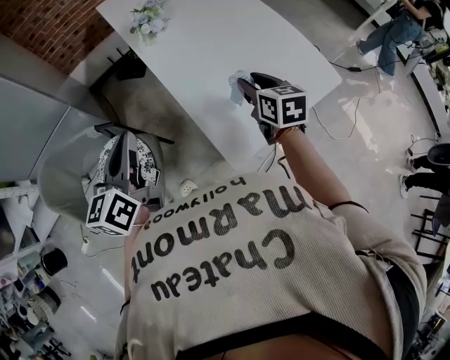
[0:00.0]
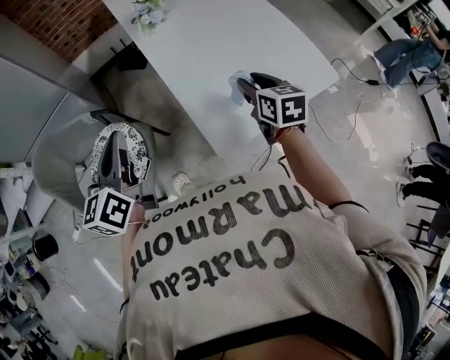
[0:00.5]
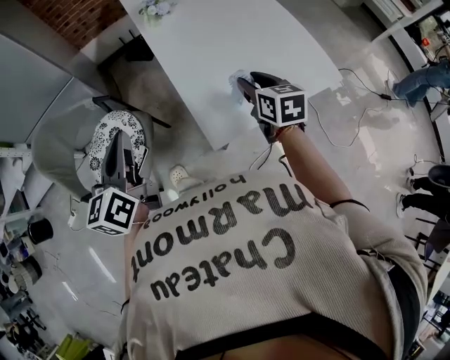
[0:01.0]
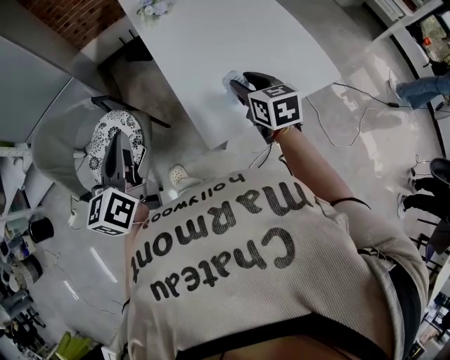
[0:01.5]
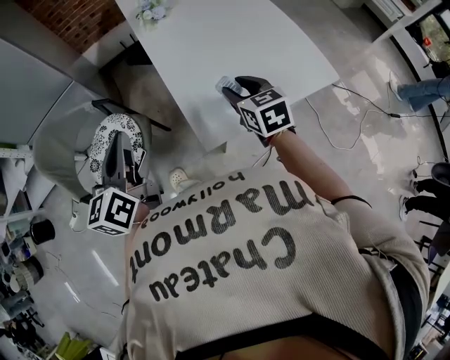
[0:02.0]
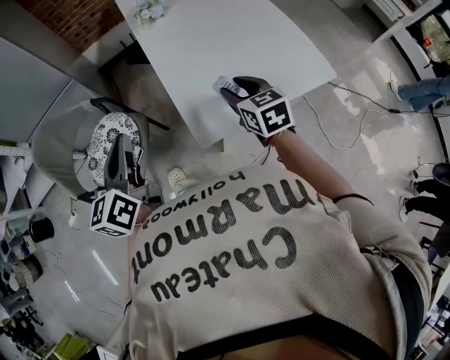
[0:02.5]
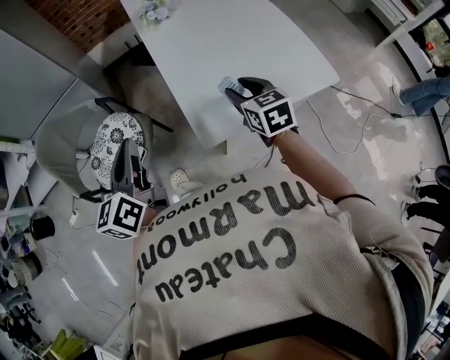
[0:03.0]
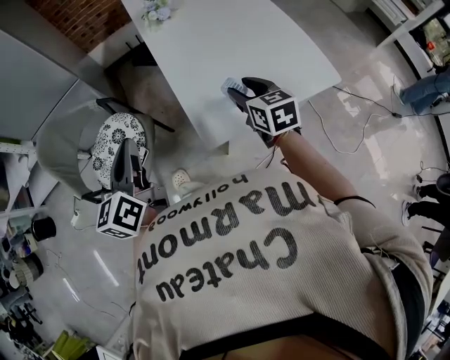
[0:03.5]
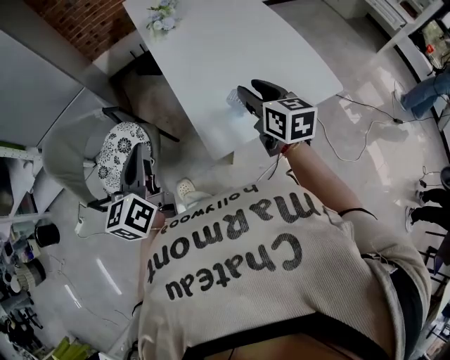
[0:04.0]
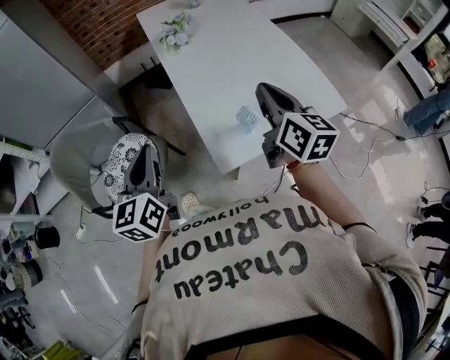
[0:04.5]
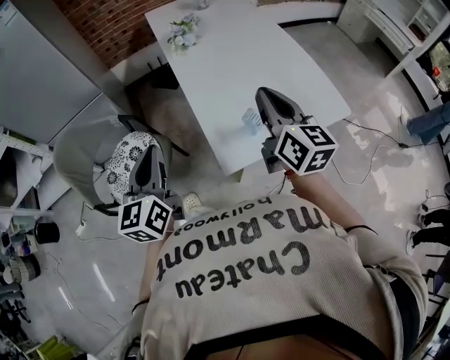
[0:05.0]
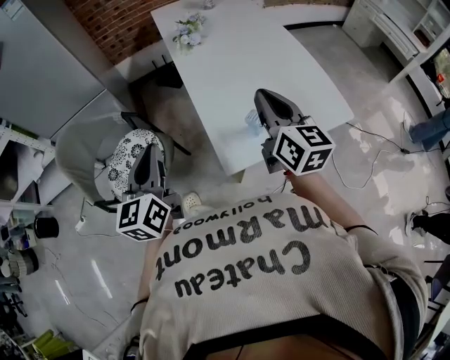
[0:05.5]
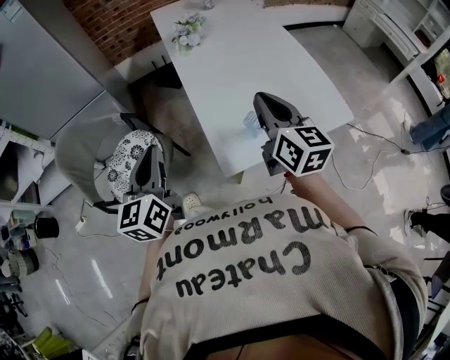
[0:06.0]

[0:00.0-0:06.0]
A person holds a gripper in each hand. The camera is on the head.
0:00.0 to 0:02.0: Both grippers travel together backward, about 10 cm.
0:02.0 to 0:04.0: The right gripper travels upward by roughly 5 cm.
0:04.0 to 0:06.0: The right gripper goes some 10 cm upward, and closes its fingers.

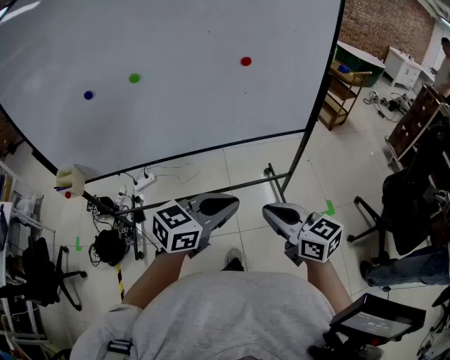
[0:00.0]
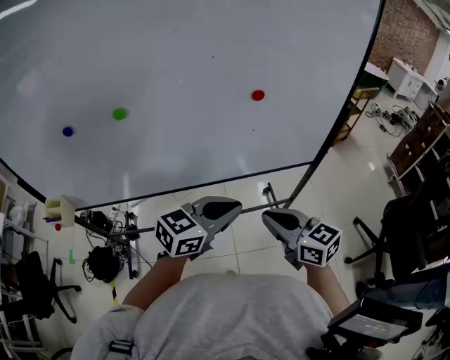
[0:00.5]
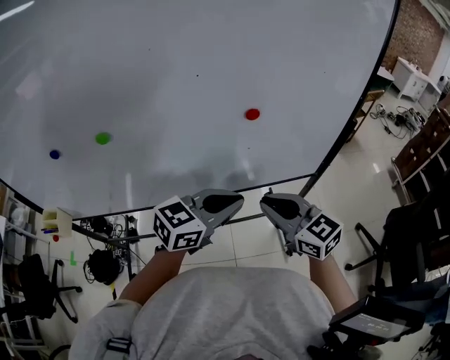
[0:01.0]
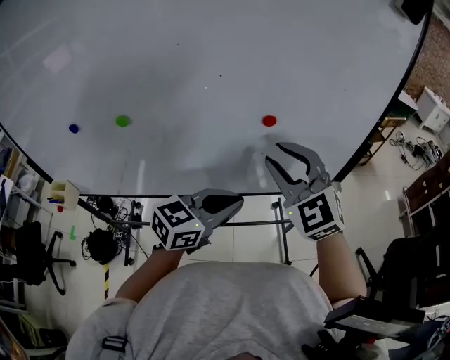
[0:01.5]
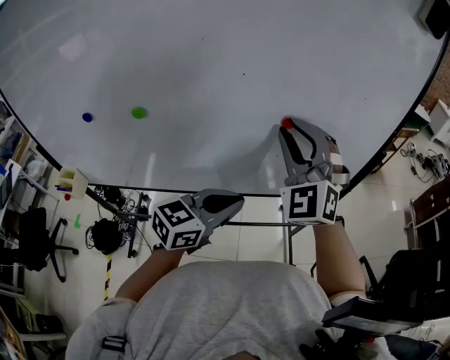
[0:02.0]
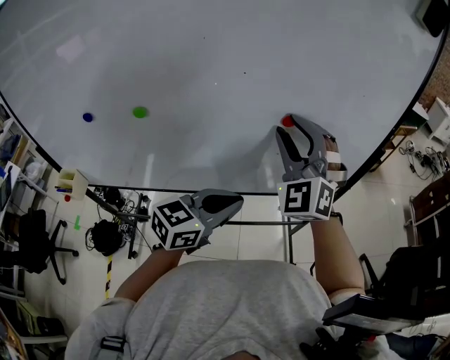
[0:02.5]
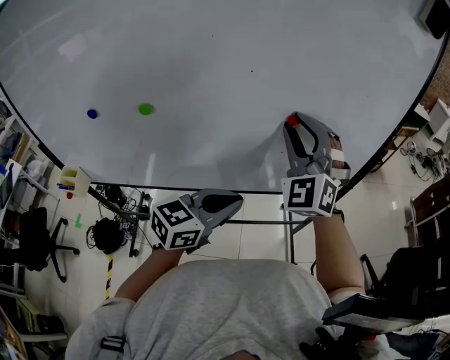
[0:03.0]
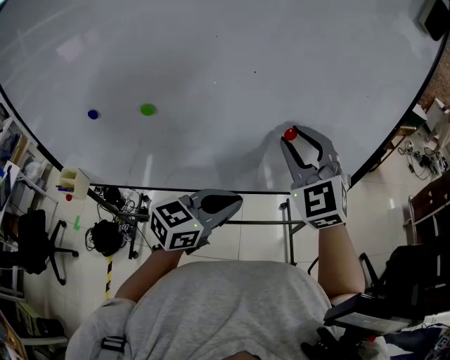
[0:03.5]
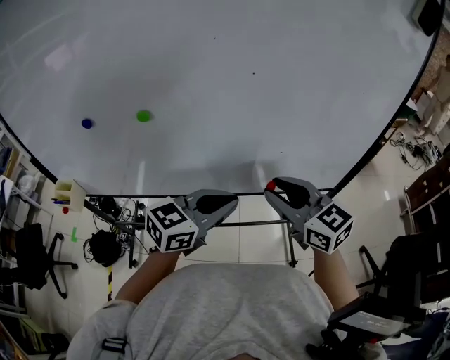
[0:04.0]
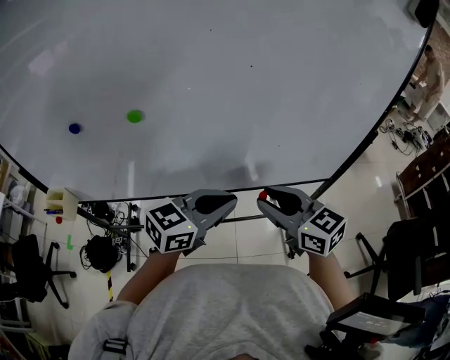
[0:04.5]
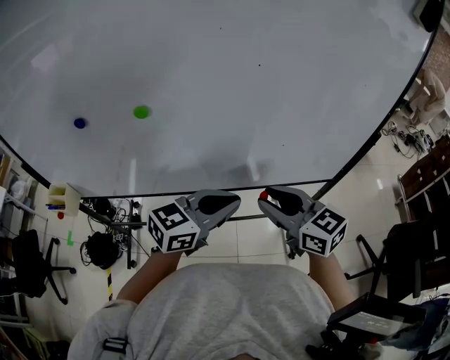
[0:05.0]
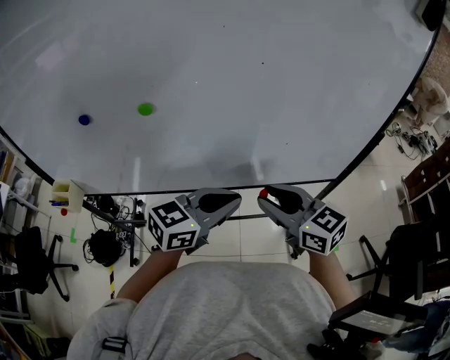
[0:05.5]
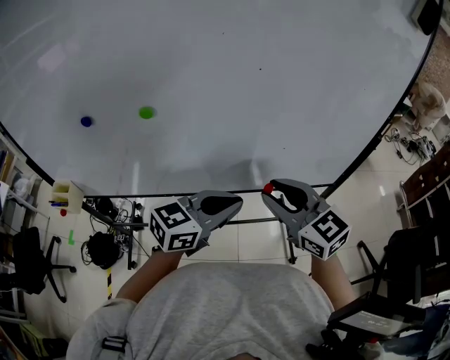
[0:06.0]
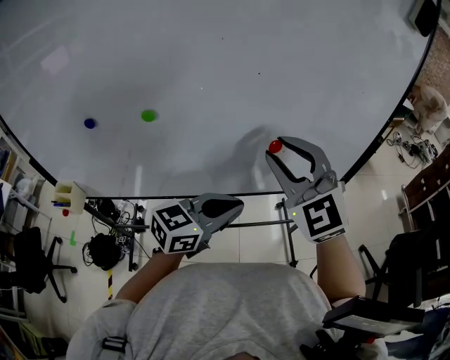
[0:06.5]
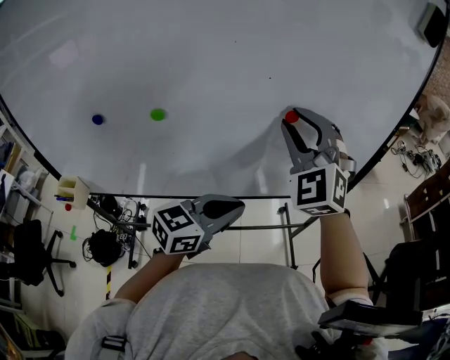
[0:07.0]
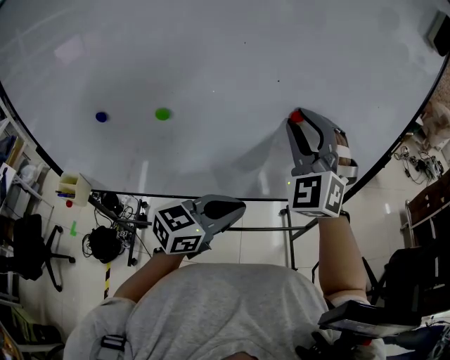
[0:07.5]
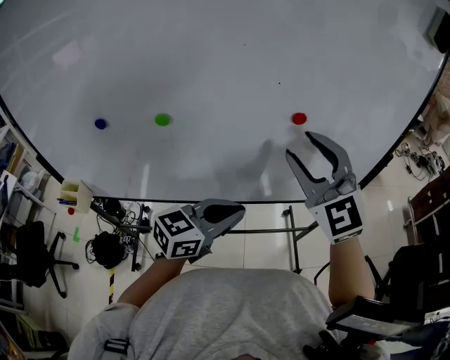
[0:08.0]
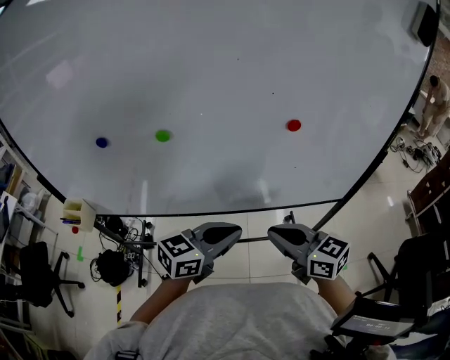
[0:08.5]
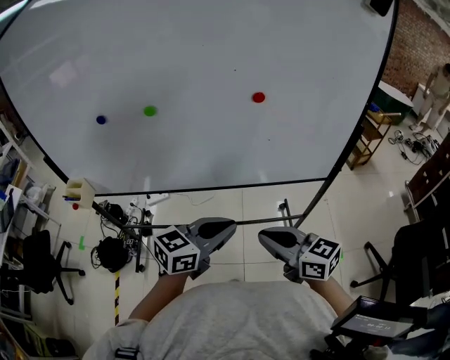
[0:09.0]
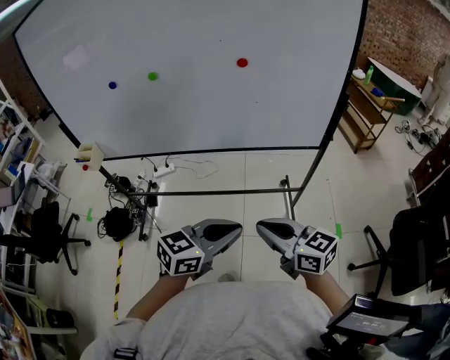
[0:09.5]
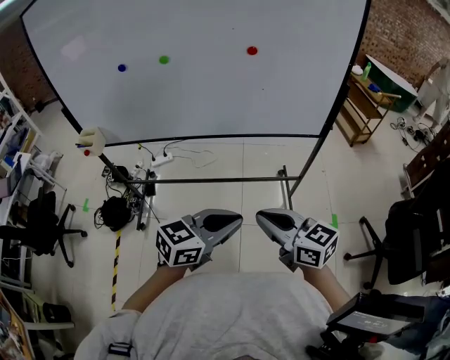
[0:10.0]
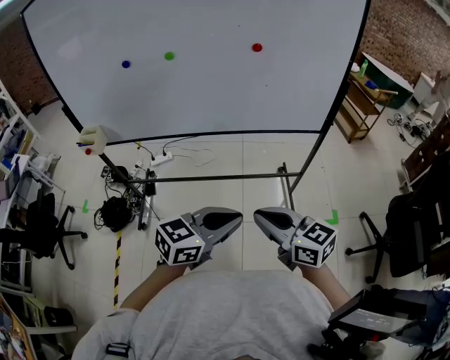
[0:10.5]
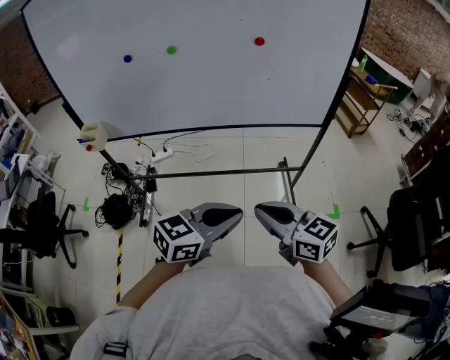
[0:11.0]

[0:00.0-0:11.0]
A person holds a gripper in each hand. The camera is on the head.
0:00.0 to 0:02.0: The left gripper is displaced forward by about 20 cm. Meanwhile the right gripper shifts about 40 cm forward and upward, and rolls counterclockwise, seen from behind, by roughly 70 degrees.
0:02.0 to 0:03.5: The grippers make only small movements.
0:03.5 to 0:05.5: The right gripper travels downward and backward by approximately 15 cm, and rolls clockwise, seen from behind, by some 50 degrees.
0:05.5 to 0:07.5: The right gripper shifts roughly 20 cm upward and forward, and rolls counterclockwise, seen from behind, by some 70 degrees.
0:07.5 to 0:09.0: The left gripper shifts roughly 10 cm backward, while the right gripper moves backward and downward, about 30 cm, twists roughly 80 degrees clockwise, seen from behind, and closes its fingers.
0:09.0 to 0:11.0: The grippers both shift backward by roughly 20 cm.

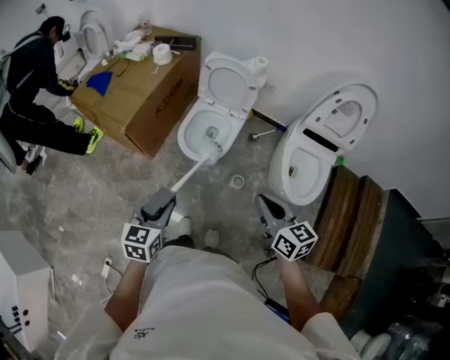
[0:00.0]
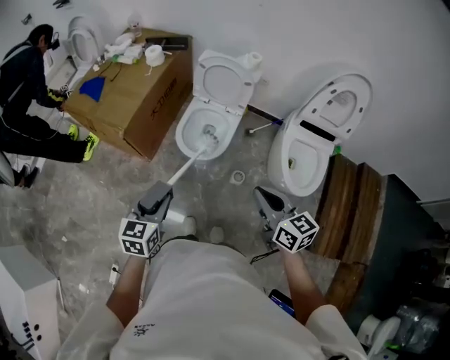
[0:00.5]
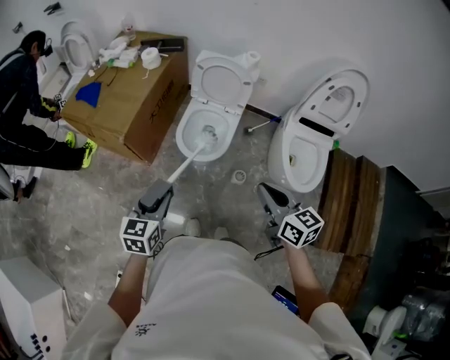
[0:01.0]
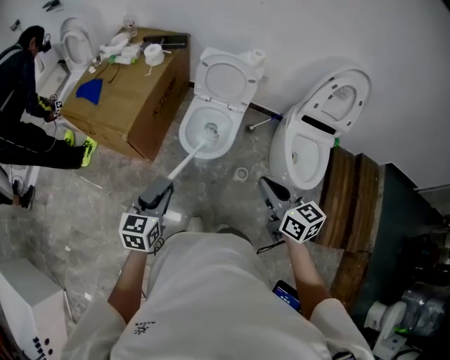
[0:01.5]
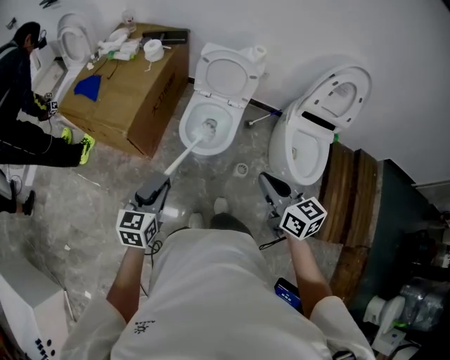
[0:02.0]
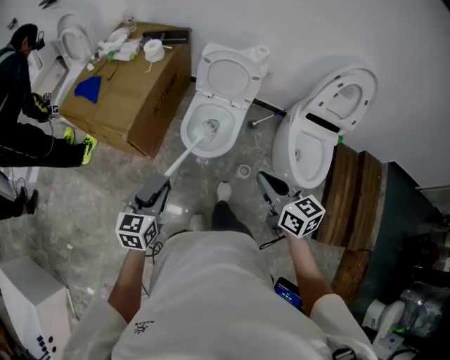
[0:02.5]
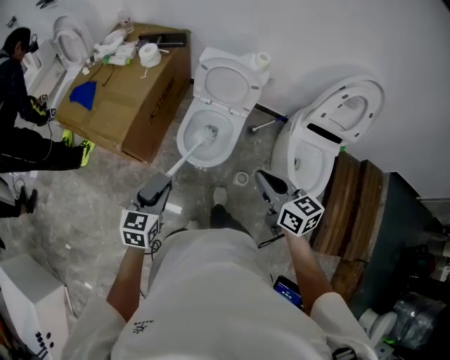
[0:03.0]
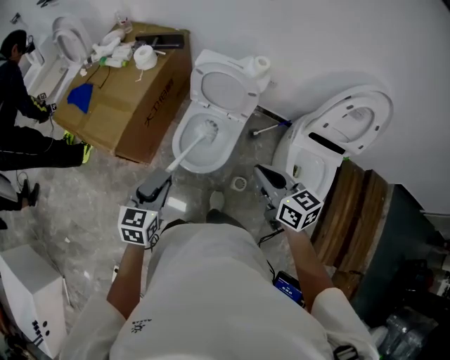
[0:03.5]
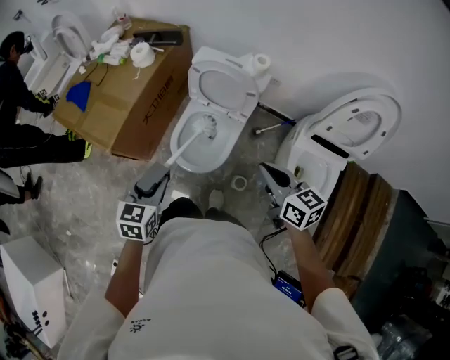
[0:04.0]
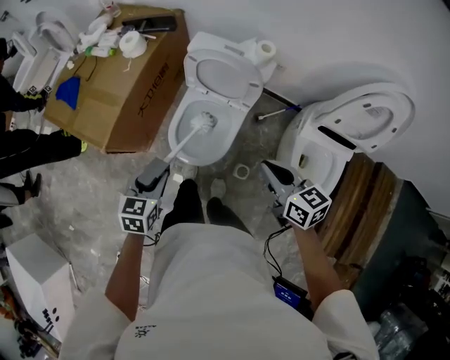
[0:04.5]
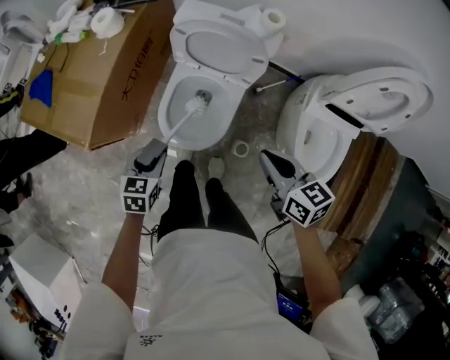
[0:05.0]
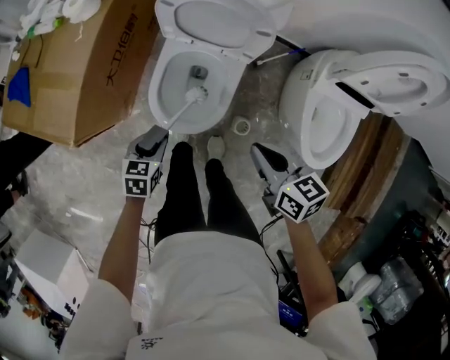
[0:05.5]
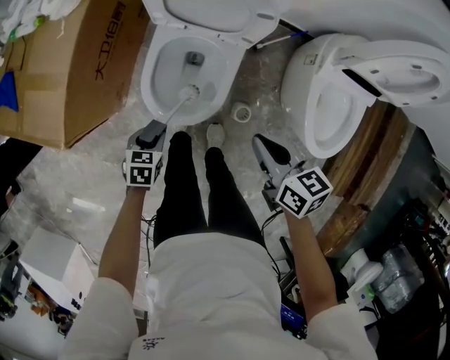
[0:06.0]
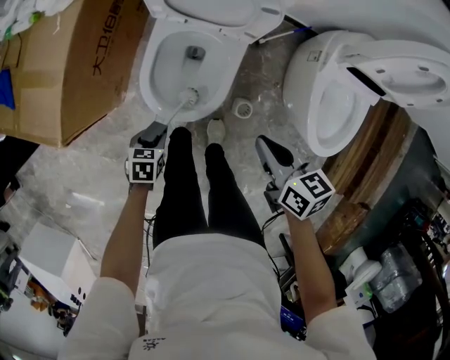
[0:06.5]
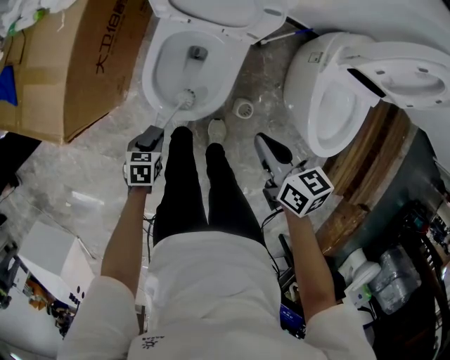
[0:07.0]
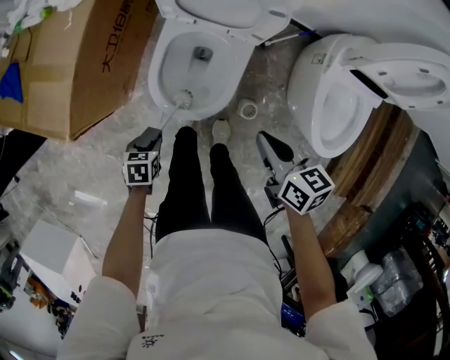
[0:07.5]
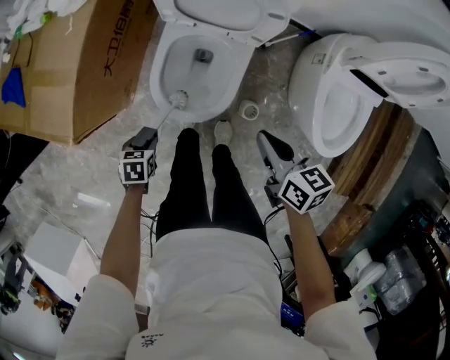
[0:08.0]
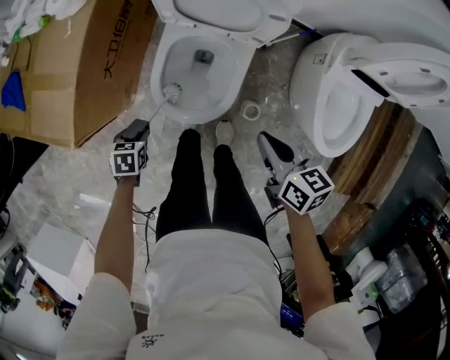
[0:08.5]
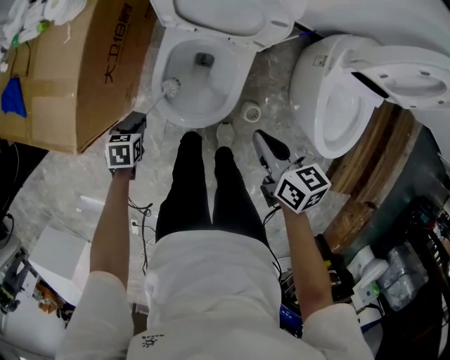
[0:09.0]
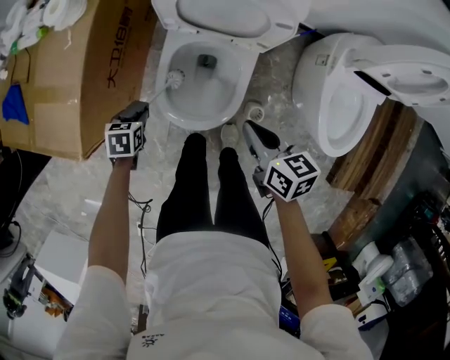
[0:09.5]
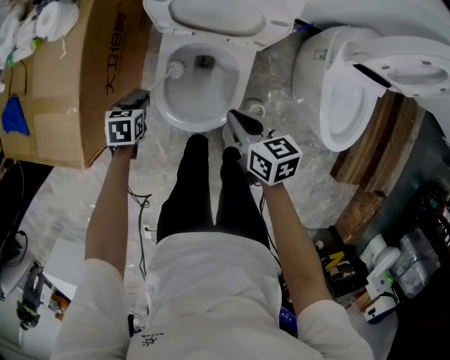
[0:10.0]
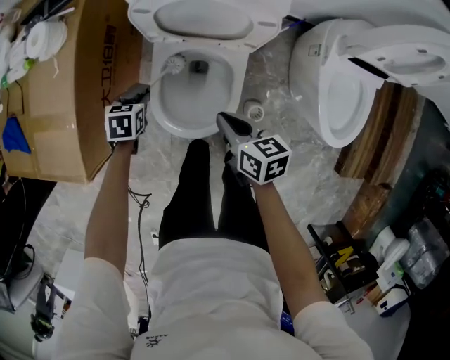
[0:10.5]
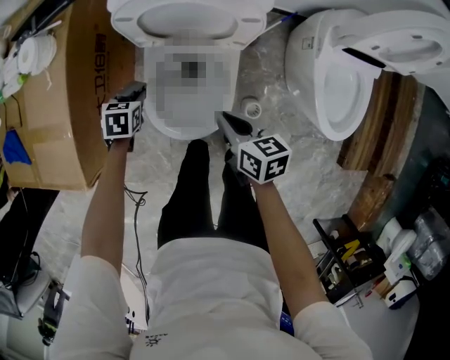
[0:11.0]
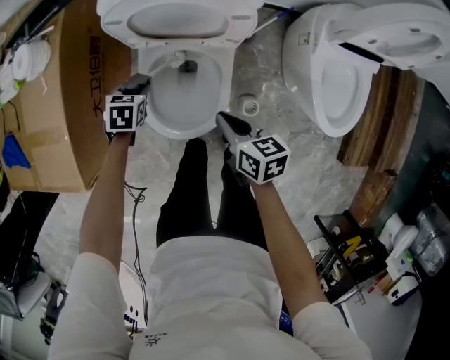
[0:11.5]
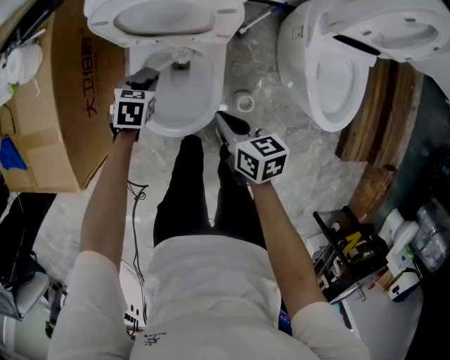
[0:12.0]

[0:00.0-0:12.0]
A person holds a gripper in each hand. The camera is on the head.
0:00.0 to 0:02.0: The left gripper travels to the left and forward by some 15 cm; the right gripper travels to the left by some 10 cm.
0:02.0 to 0:04.0: The two grippers go some 25 cm forward and to the right.
0:04.0 to 0:06.0: The left gripper goes approximately 35 cm downward, and turns by approximately 30 degrees. Meanwhile the right gripper moves downward, some 25 cm, and rotates approximately 20 degrees.
0:06.0 to 0:08.0: The left gripper ends up approximately 5 cm from where it was.
0:08.0 to 0:10.0: The right gripper moves roughly 15 cm. The left gripper ends up some 20 cm from where it was.
0:10.0 to 0:12.0: The left gripper travels to the right and forward by some 15 cm. The right gripper goes approximately 5 cm to the right.
